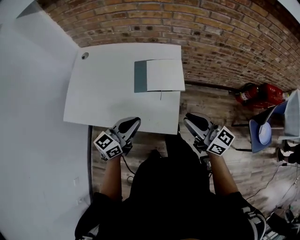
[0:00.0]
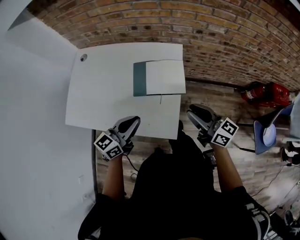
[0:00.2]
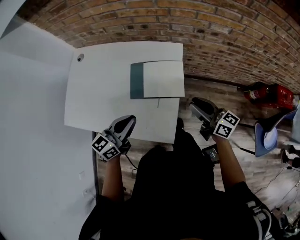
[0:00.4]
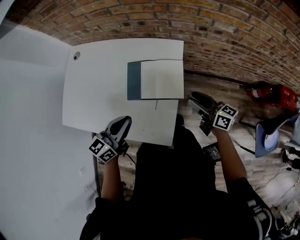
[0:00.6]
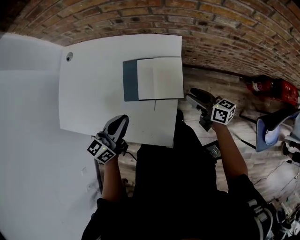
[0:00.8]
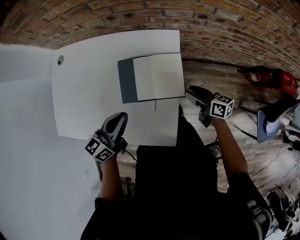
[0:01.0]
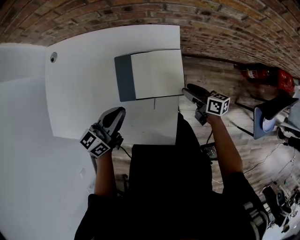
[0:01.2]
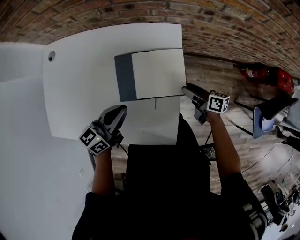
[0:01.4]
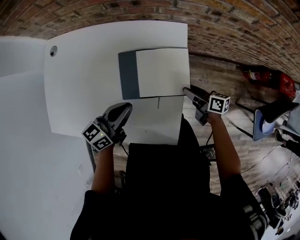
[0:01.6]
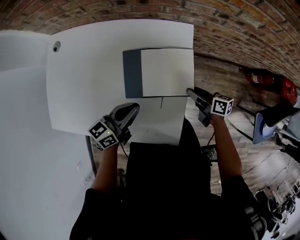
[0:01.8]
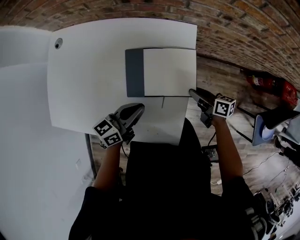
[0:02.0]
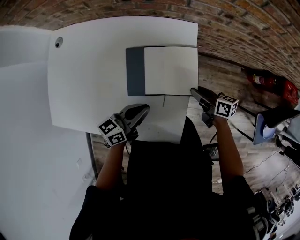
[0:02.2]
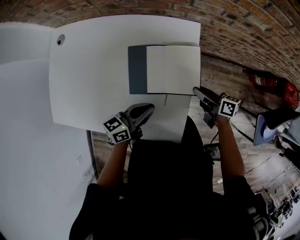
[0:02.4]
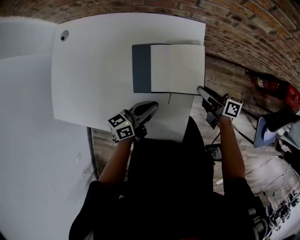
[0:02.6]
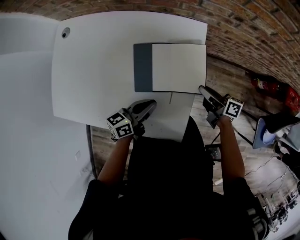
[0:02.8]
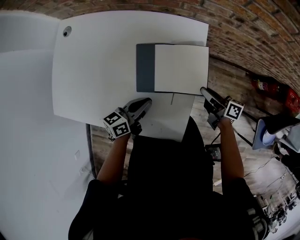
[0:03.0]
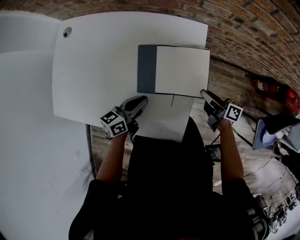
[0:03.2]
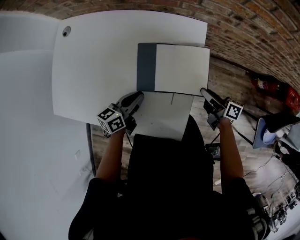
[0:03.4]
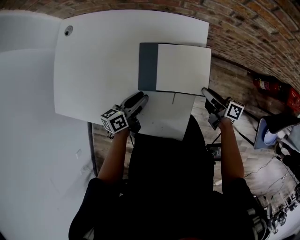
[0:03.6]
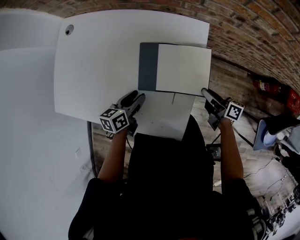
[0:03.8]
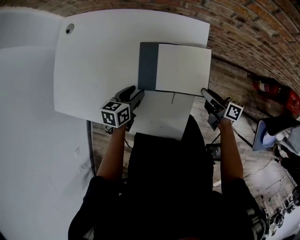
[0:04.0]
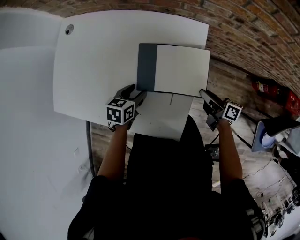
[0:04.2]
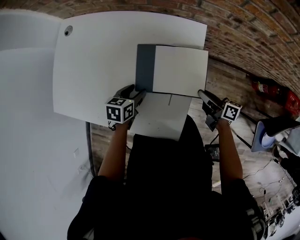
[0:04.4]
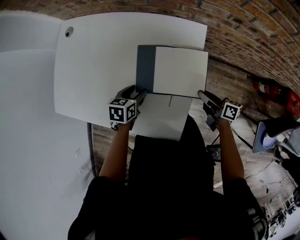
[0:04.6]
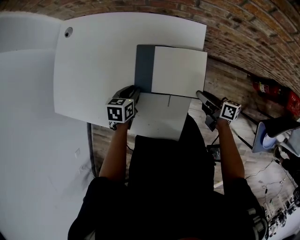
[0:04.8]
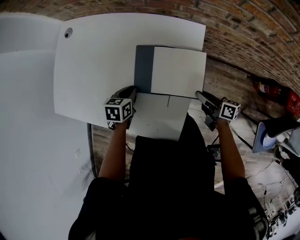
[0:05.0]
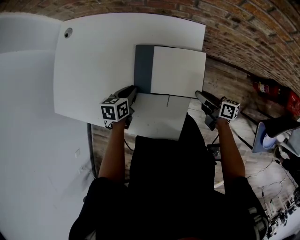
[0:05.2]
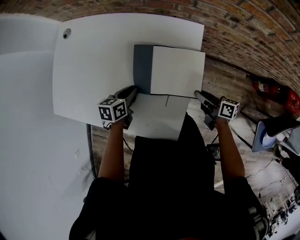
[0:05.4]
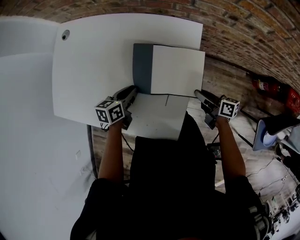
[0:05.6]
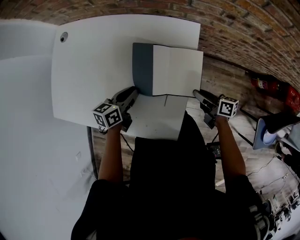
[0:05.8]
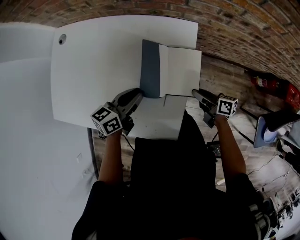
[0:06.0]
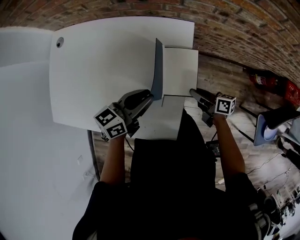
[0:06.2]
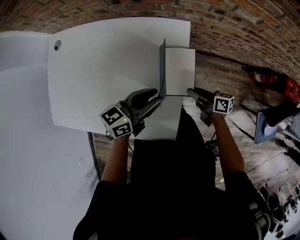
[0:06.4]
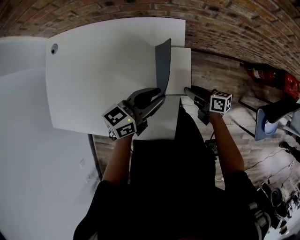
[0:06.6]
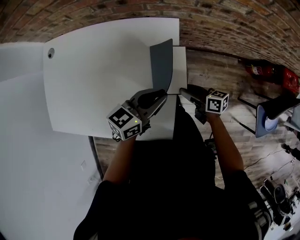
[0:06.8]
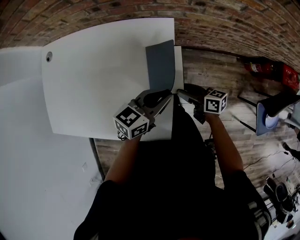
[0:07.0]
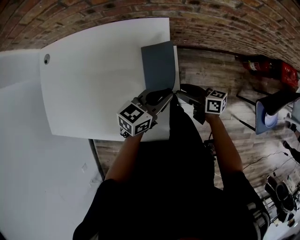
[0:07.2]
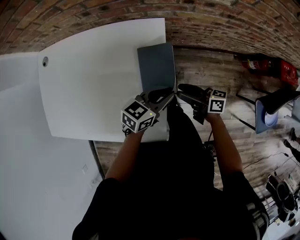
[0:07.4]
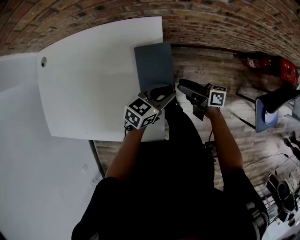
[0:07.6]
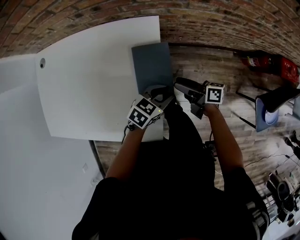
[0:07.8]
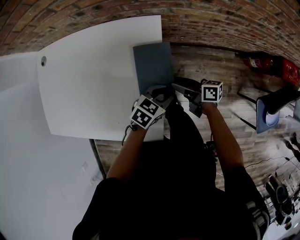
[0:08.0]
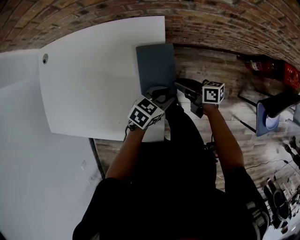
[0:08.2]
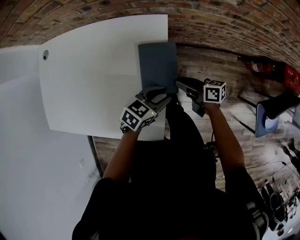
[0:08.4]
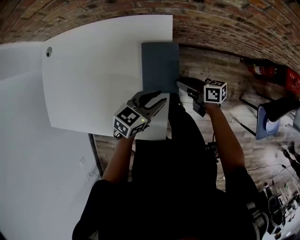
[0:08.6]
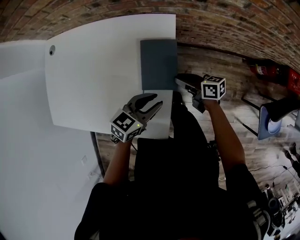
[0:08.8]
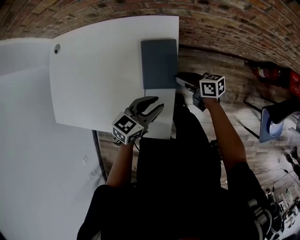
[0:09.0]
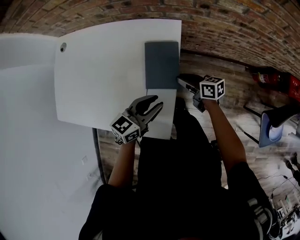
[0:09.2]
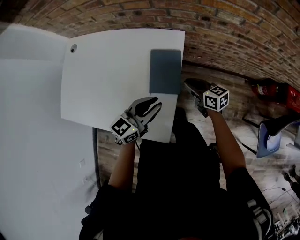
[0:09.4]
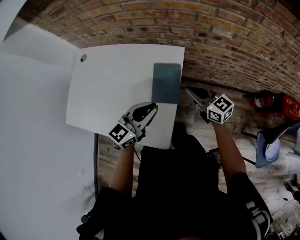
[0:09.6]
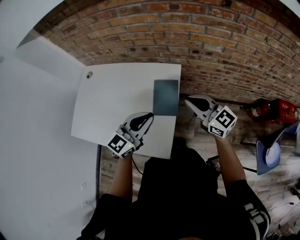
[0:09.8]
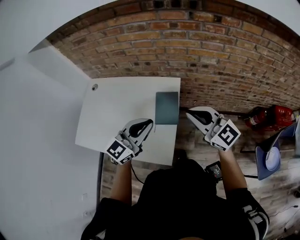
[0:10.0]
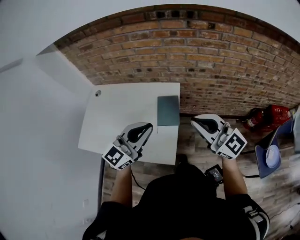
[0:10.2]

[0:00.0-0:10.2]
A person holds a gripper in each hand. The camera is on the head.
0:00.0 to 0:01.4: The right gripper travels downward and forward by some 35 cm, turns by roughly 50 degrees, and opens up. Meanwhile the left gripper heads forward and downward, covering some 20 cm.
0:01.4 to 0:03.0: The right gripper closes; the left gripper shifts roughly 10 cm downward.
0:03.0 to 0:04.4: The left gripper goes roughly 5 cm downward, tilts its fingers about 40 degrees downward, and opens its fingers.
0:04.4 to 0:05.8: The left gripper changes its angle by roughly 20 degrees, and closes its fingers.
0:05.8 to 0:07.2: The right gripper opens, while the left gripper heads to the right, covering approximately 25 cm, and swivels some 30 degrees.
0:07.2 to 0:08.8: The left gripper reaches some 10 cm downward, then returns. The right gripper closes up.
0:08.8 to 0:10.2: The two grippers go about 40 cm upward. The right gripper rotates around the line of its fingers by some 70 degrees, counterclockwise from behind. Meanwhile the left gripper tilts its fingers roughly 30 degrees upward, and closes up.

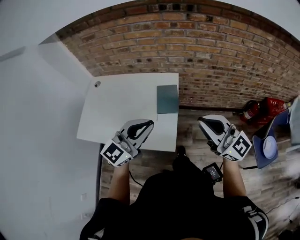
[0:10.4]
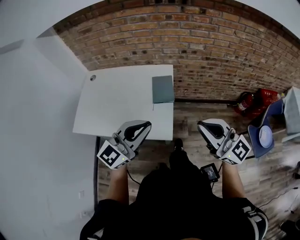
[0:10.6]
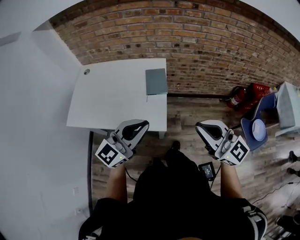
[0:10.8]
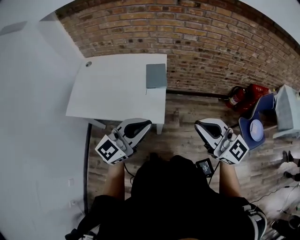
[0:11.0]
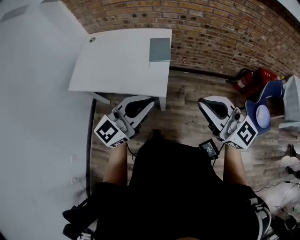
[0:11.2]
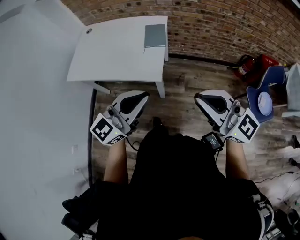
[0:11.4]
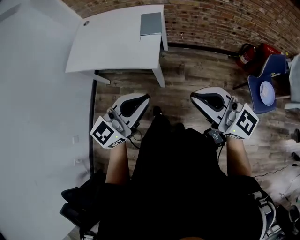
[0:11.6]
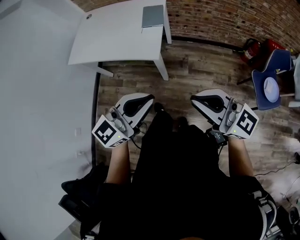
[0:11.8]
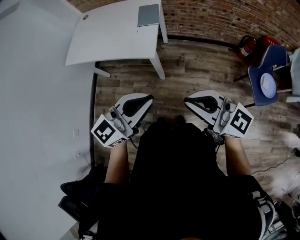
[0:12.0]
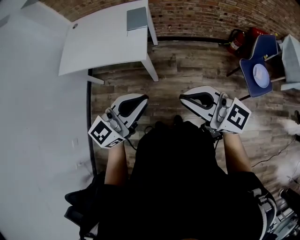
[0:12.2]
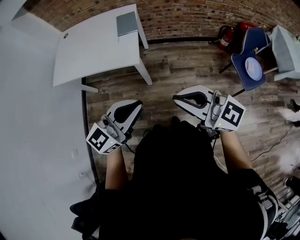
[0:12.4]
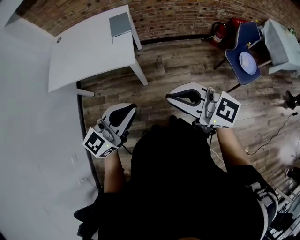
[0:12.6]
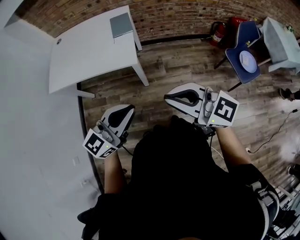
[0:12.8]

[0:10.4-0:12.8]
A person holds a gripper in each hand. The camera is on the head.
0:10.4 to 0:11.6: The two grippers go some 30 cm backward.
0:11.6 to 0:12.8: The right gripper moves backward and to the left, roughly 10 cm. The left gripper moves backward, approximately 5 cm.

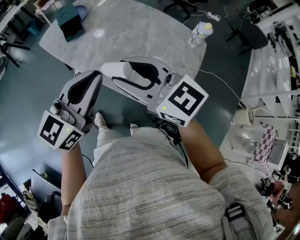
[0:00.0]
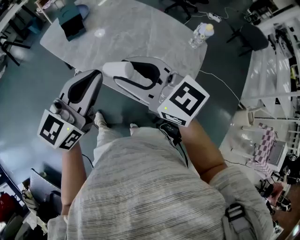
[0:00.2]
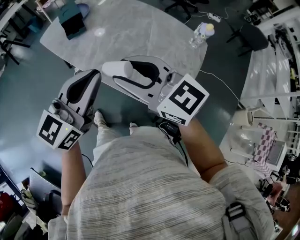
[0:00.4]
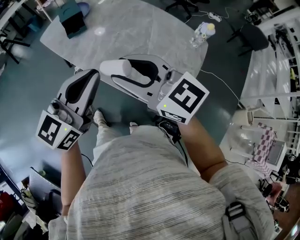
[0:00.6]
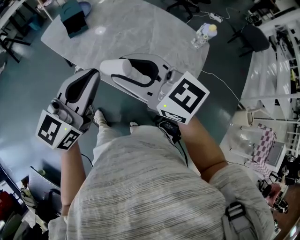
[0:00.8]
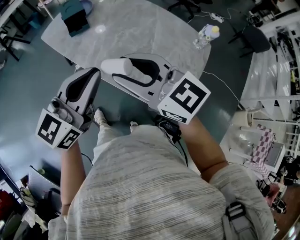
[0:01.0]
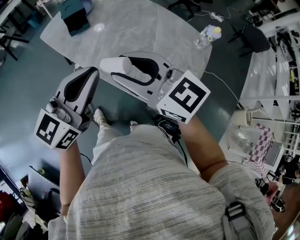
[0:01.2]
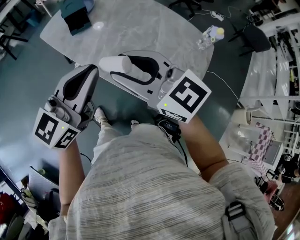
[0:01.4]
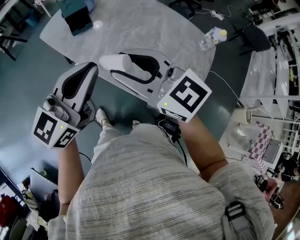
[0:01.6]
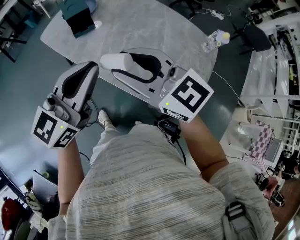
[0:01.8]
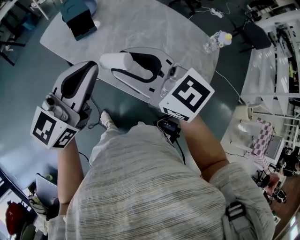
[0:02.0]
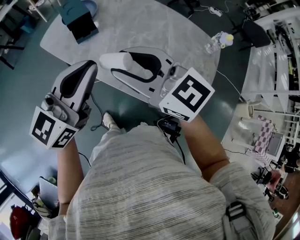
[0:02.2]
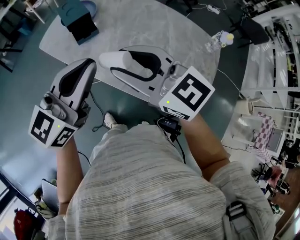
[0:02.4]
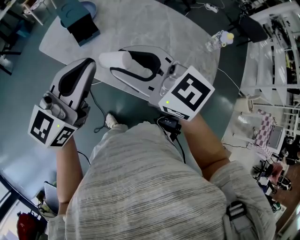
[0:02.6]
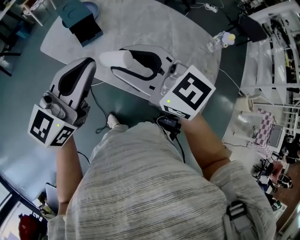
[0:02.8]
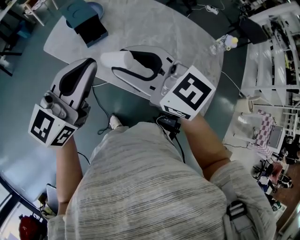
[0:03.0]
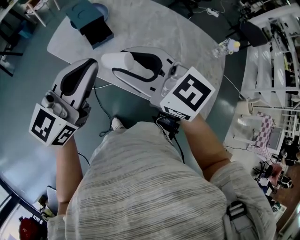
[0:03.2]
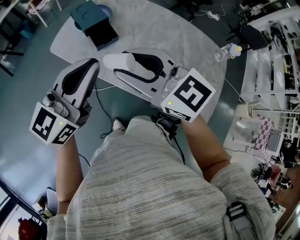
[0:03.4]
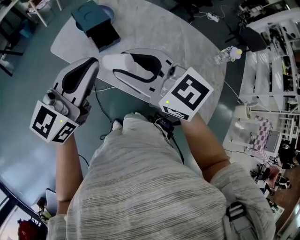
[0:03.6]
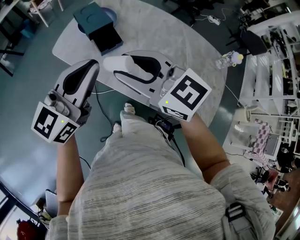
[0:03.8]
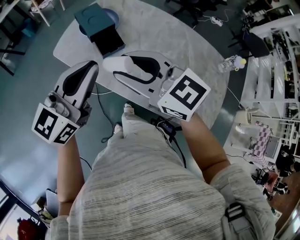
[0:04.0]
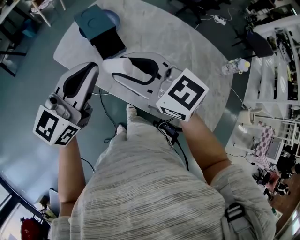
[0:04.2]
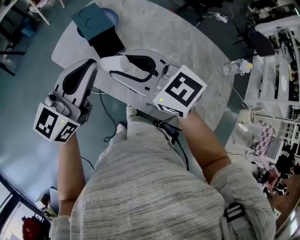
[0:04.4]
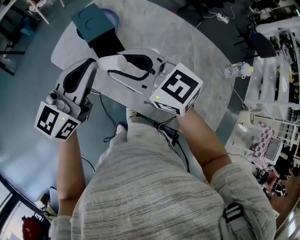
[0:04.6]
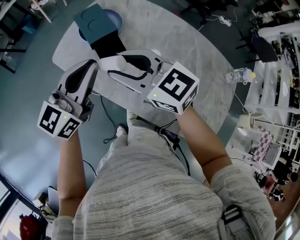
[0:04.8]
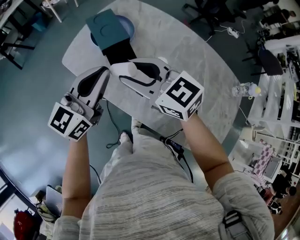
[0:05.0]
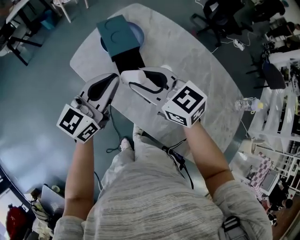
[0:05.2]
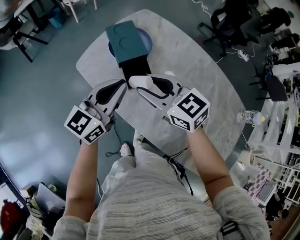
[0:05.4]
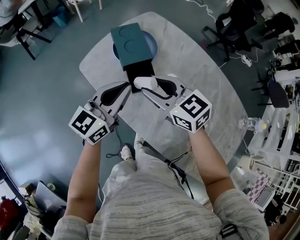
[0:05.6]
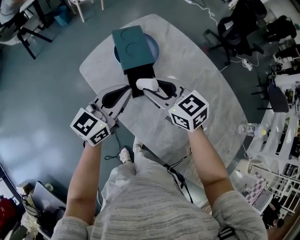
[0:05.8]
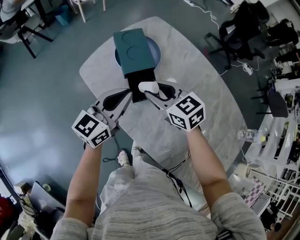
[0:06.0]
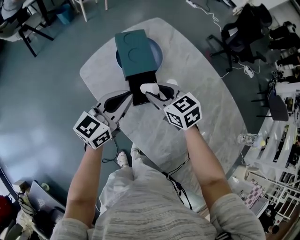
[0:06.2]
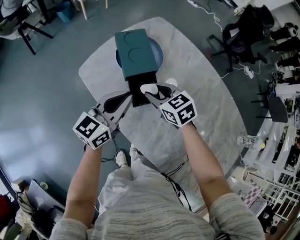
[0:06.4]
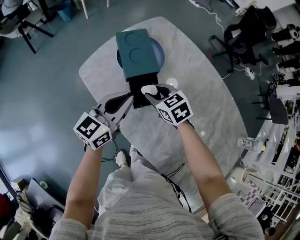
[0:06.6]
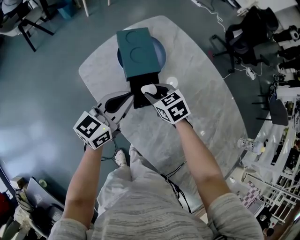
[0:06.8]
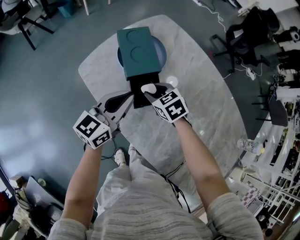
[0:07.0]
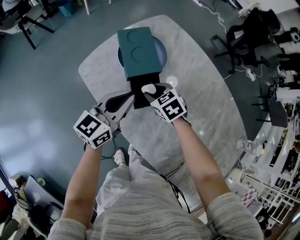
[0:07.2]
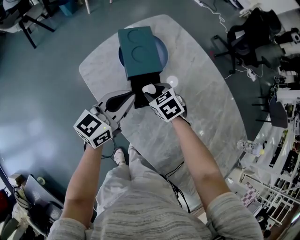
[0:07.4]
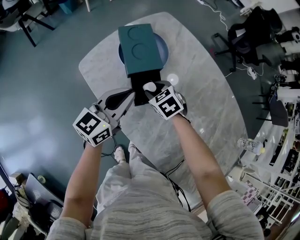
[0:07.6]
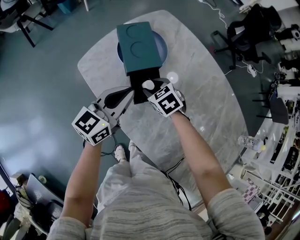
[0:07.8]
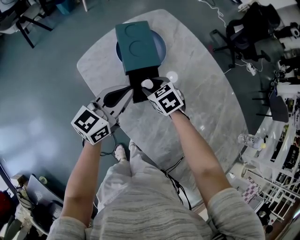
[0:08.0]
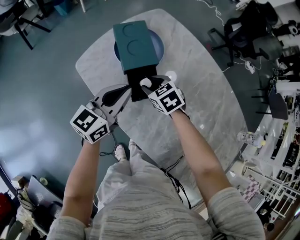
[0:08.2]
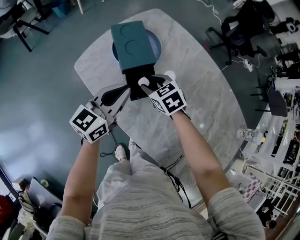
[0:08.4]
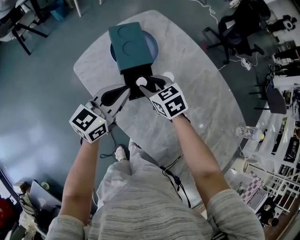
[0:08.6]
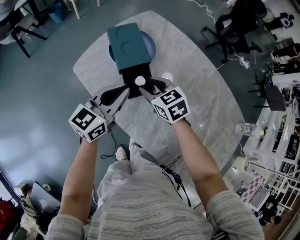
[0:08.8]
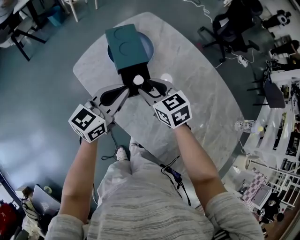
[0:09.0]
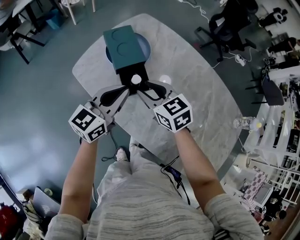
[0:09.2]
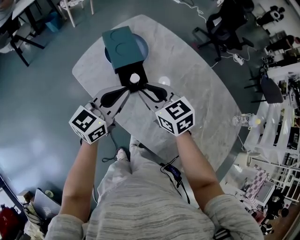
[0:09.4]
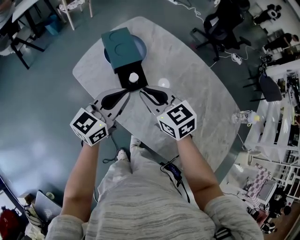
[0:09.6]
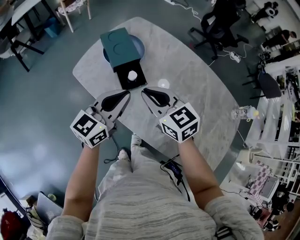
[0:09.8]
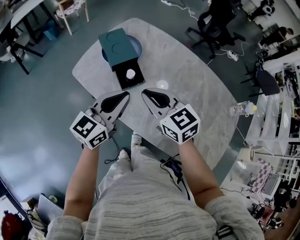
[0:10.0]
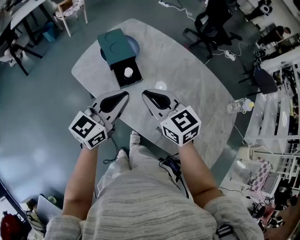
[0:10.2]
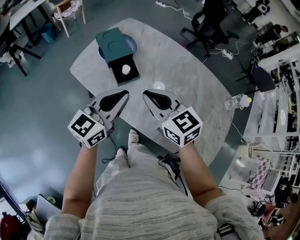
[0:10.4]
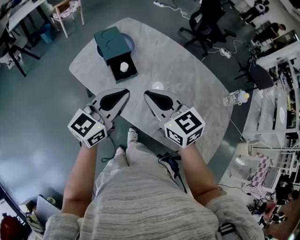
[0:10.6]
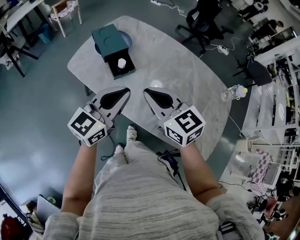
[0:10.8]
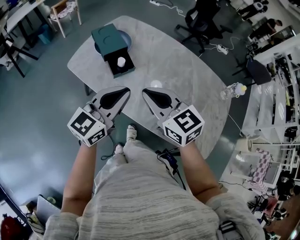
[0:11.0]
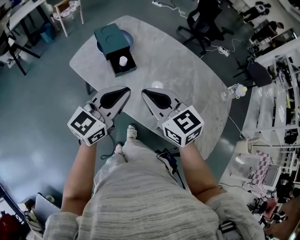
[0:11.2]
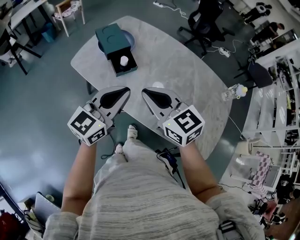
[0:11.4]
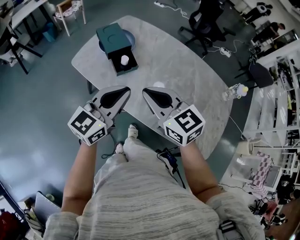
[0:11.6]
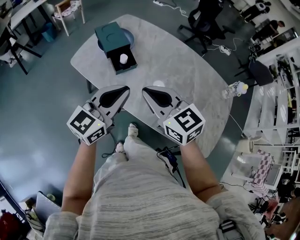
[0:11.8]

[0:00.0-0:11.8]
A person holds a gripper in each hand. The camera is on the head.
0:00.0 to 0:01.4: Both grippers move to the left, some 5 cm.
0:01.4 to 0:03.0: Both grippers travel together to the left and forward, about 20 cm.
0:03.0 to 0:04.4: Both grippers travel together forward and to the left, roughly 15 cm.
0:04.4 to 0:06.0: The two grippers go roughly 20 cm forward and downward. The right gripper turns by roughly 20 degrees.
0:06.0 to 0:07.4: The right gripper shifts approximately 15 cm downward, and turns by about 30 degrees.
0:07.4 to 0:08.8: The right gripper travels upward by some 10 cm.
0:08.8 to 0:10.4: Both grippers travel together backward and upward, some 20 cm. The right gripper rotates about 20 degrees, and closes up.
0:10.4 to 0:11.8: The two grippers go roughly 5 cm backward.
